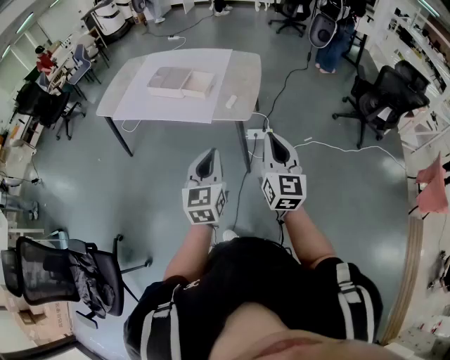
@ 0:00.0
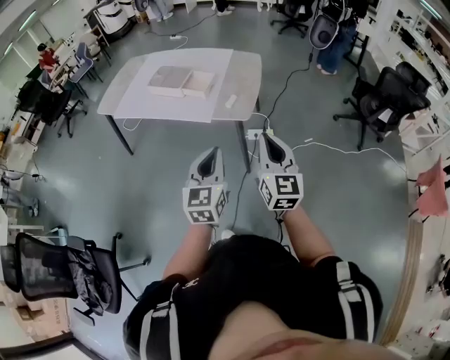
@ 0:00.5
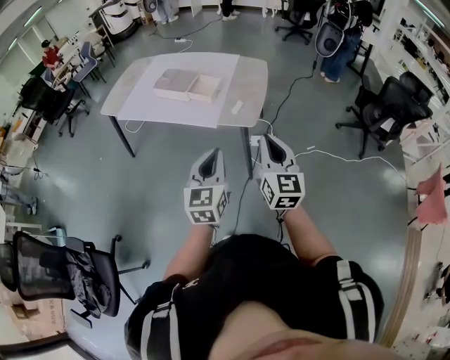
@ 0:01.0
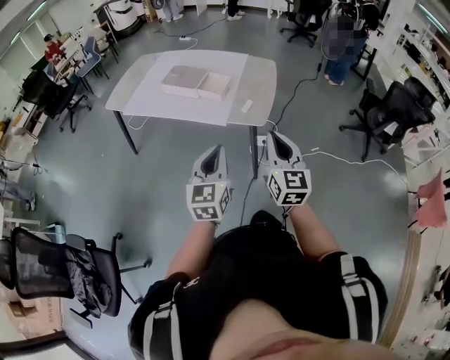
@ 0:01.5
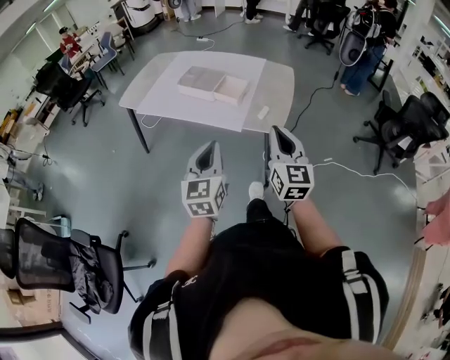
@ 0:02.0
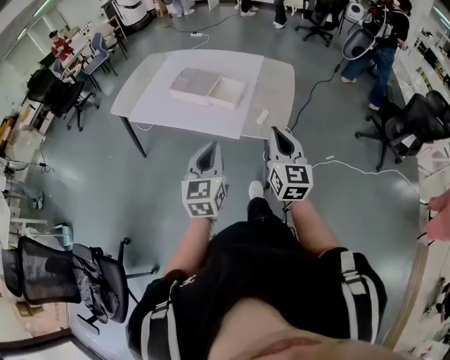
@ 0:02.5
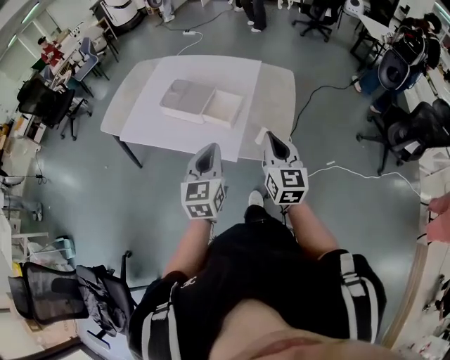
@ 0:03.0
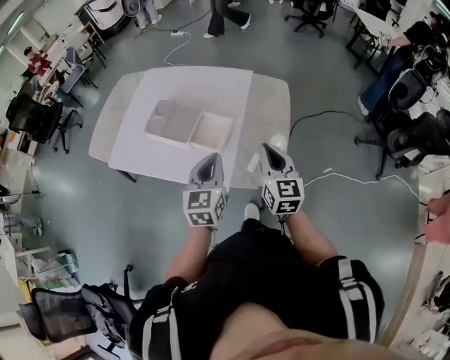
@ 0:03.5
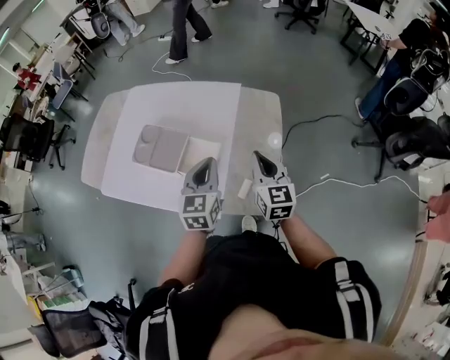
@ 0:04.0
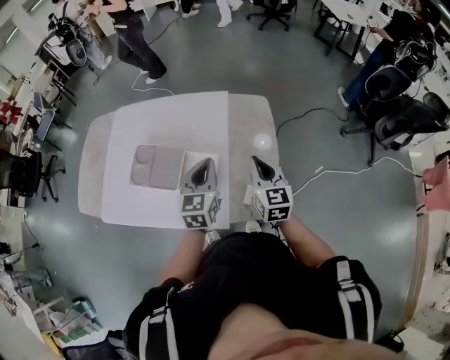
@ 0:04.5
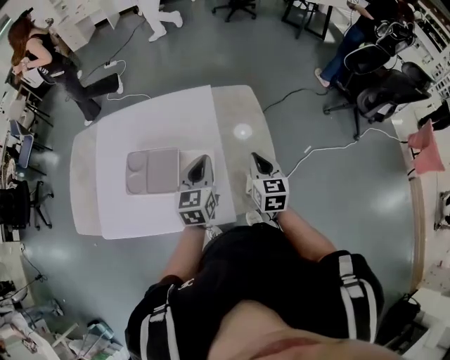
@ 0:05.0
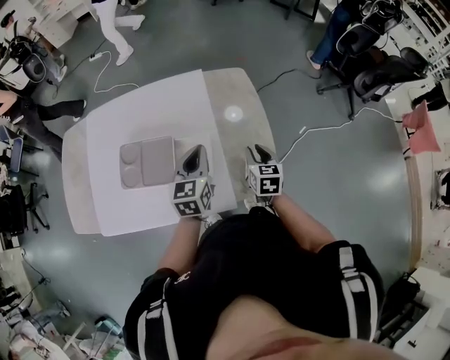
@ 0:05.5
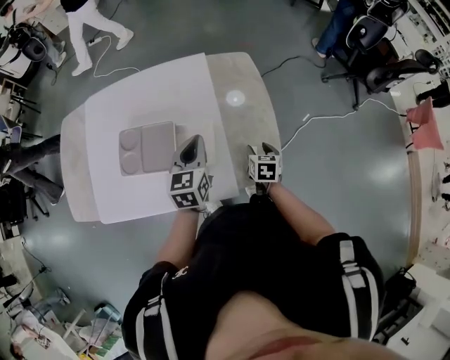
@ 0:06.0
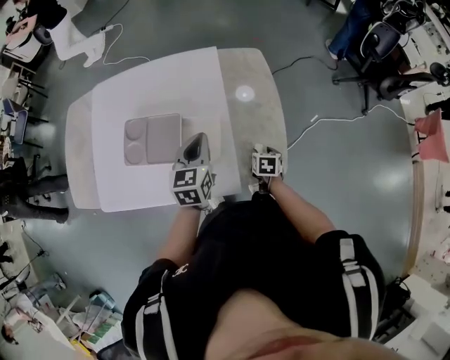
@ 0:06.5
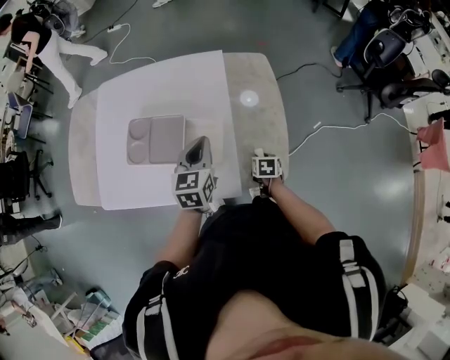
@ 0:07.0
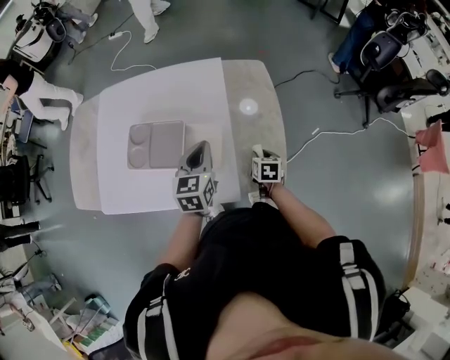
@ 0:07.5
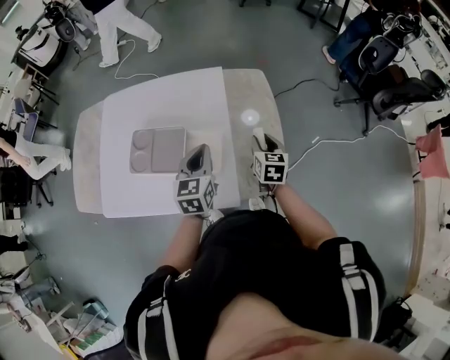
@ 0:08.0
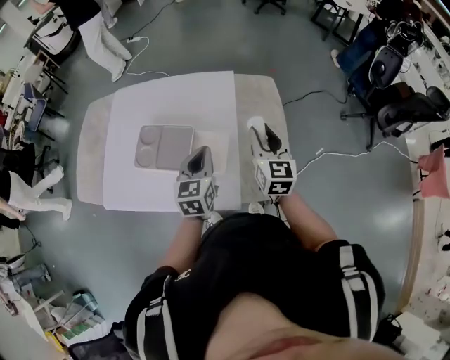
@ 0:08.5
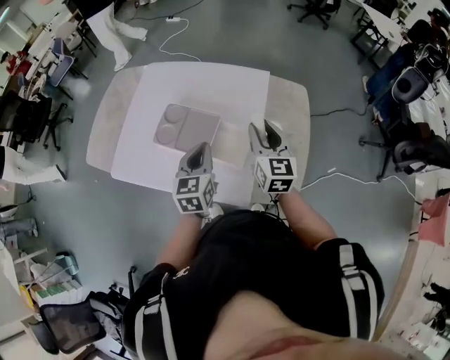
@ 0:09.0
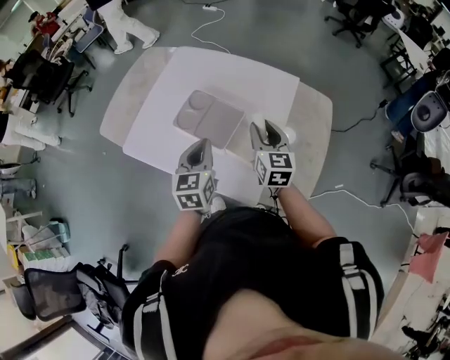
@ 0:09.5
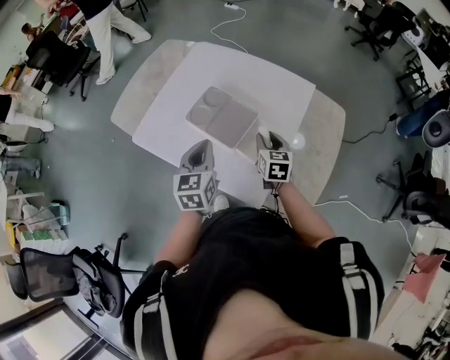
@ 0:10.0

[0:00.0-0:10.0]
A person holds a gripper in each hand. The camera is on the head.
0:00.0 to 0:02.0: Both grippers move to the left and forward, some 15 cm.
0:02.0 to 0:04.0: The pair of grippers is taken forward, about 50 cm.
0:04.0 to 0:06.0: The left gripper moves to the left and downward, about 10 cm, while the right gripper moves downward, roughly 25 cm, tips its fingers downward by some 40 degrees, and opens its fingers.
0:06.0 to 0:08.0: The right gripper shifts roughly 10 cm upward.
0:08.0 to 0:10.0: The left gripper ends up approximately 20 cm from where it was, and rotates roughly 30 degrees, while the right gripper reaches approximately 15 cm upward, then returns, and rotates about 30 degrees.

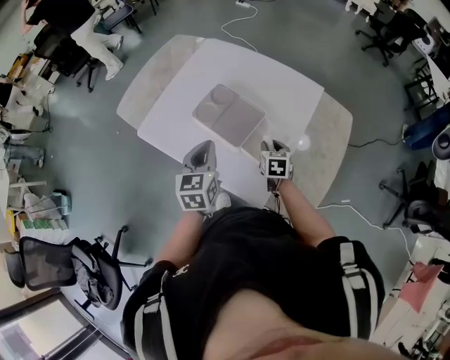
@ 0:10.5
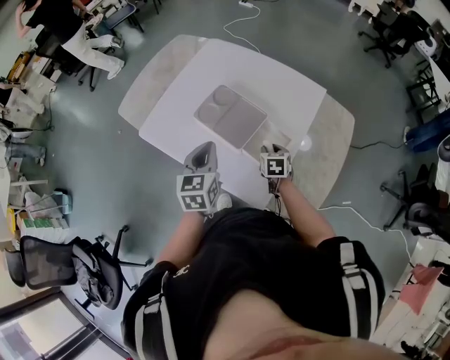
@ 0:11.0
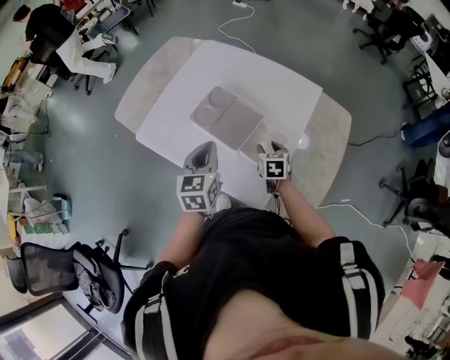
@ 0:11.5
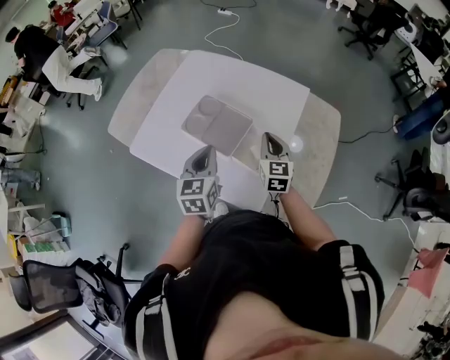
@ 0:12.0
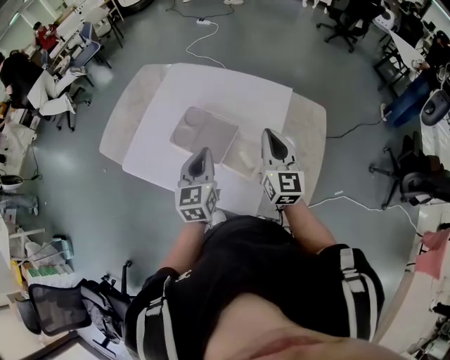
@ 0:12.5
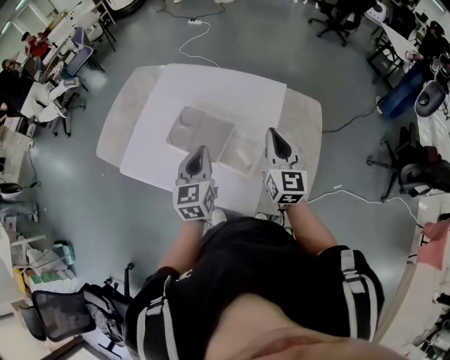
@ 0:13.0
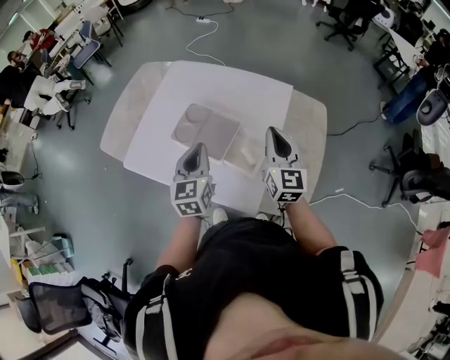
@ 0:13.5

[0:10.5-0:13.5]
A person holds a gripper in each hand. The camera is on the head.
0:10.5 to 0:12.0: The right gripper moves upward, approximately 10 cm, changes its angle by approximately 30 degrees, and closes its fingers.
0:12.0 to 0:13.5: The right gripper heads upward, covering approximately 10 cm.

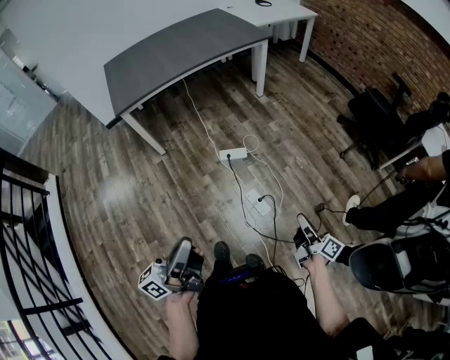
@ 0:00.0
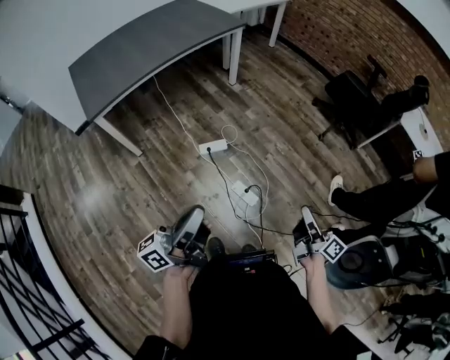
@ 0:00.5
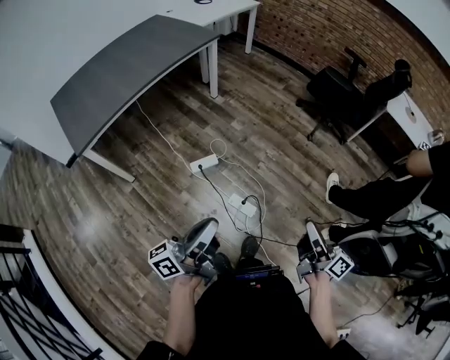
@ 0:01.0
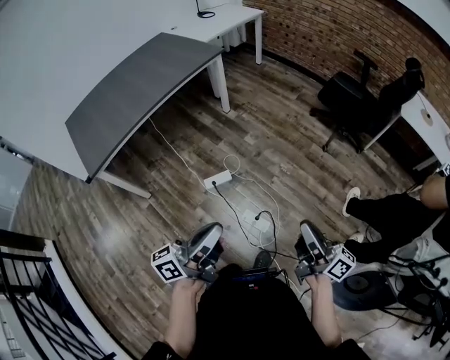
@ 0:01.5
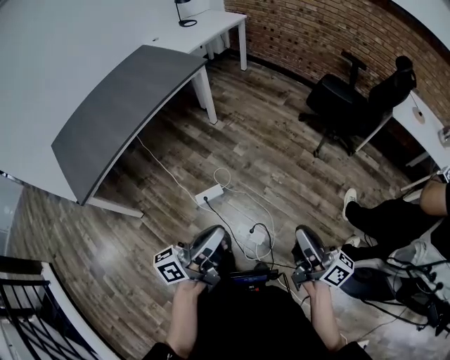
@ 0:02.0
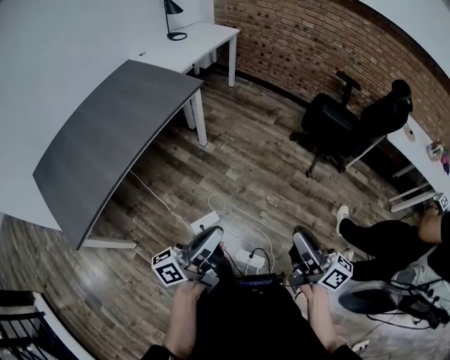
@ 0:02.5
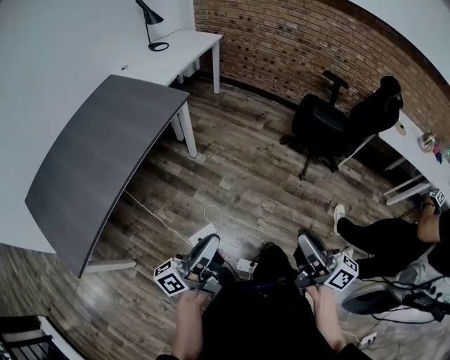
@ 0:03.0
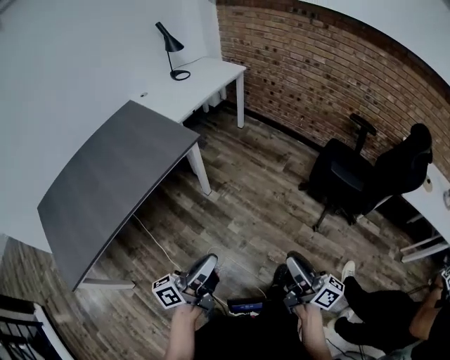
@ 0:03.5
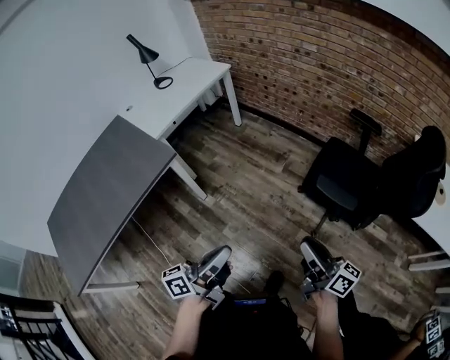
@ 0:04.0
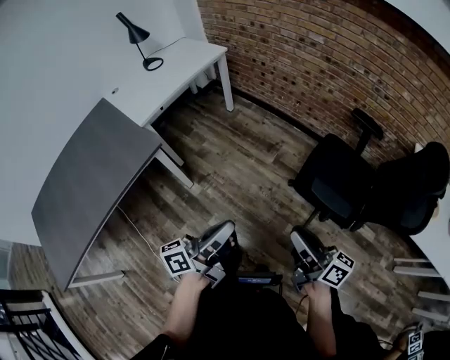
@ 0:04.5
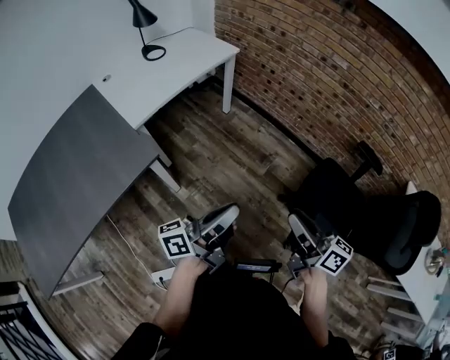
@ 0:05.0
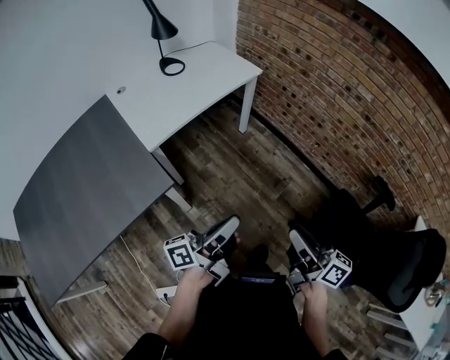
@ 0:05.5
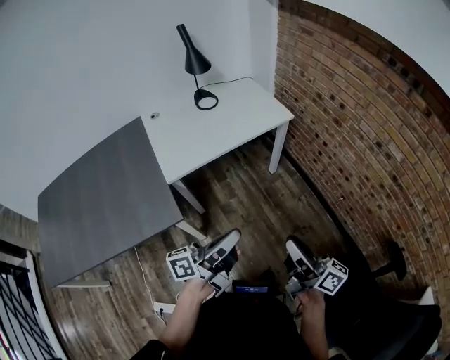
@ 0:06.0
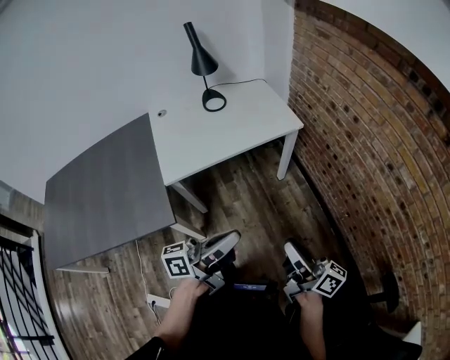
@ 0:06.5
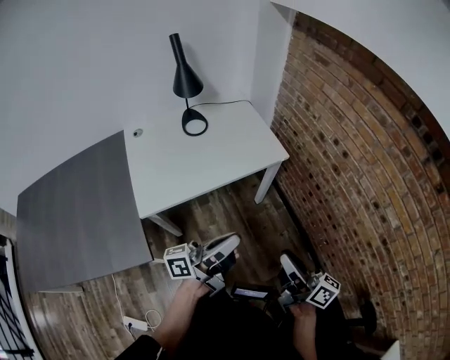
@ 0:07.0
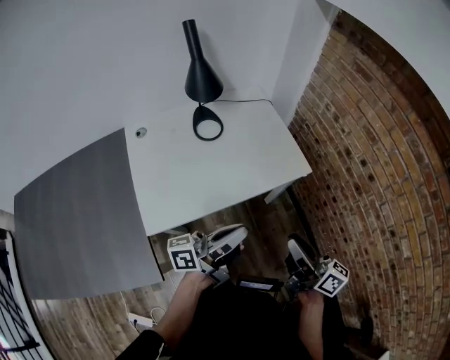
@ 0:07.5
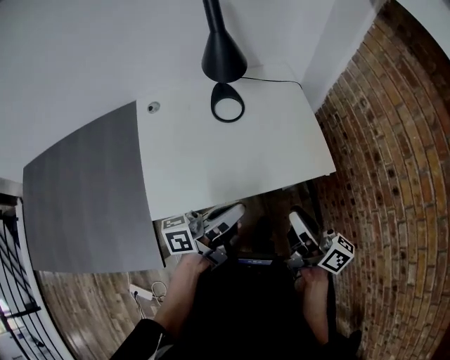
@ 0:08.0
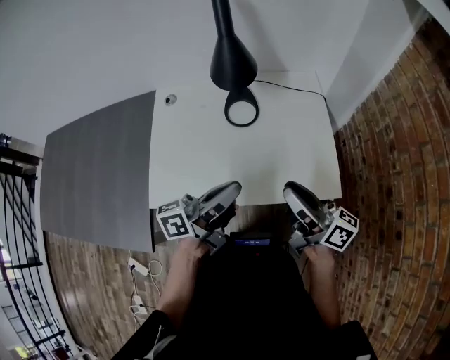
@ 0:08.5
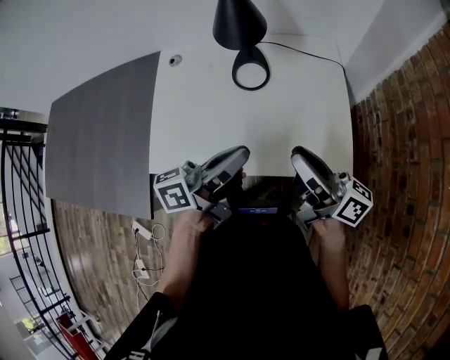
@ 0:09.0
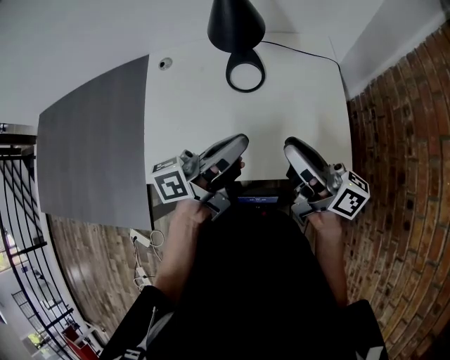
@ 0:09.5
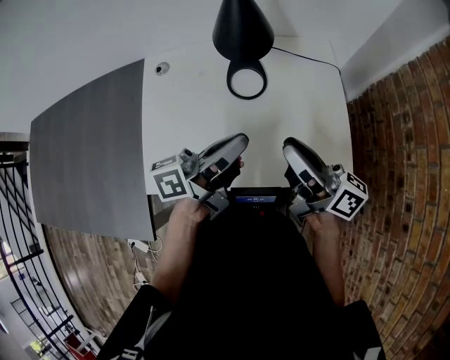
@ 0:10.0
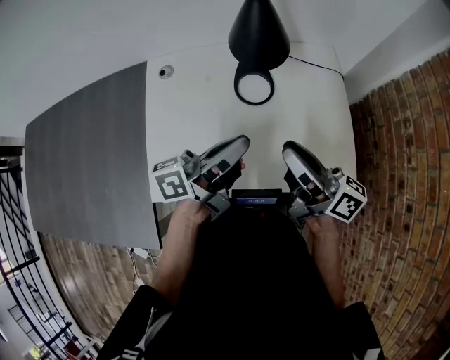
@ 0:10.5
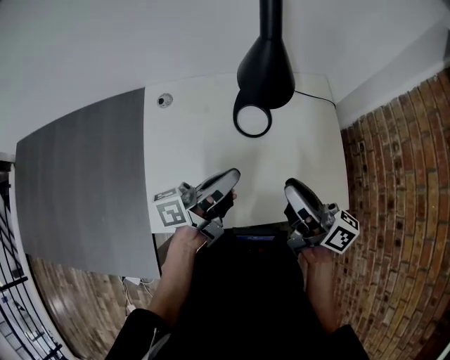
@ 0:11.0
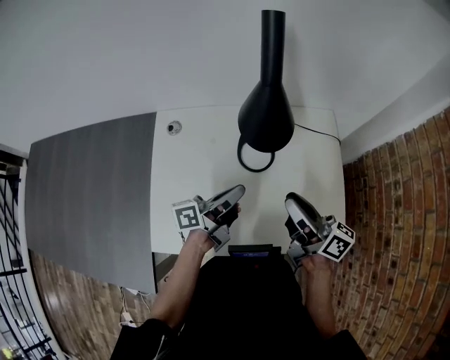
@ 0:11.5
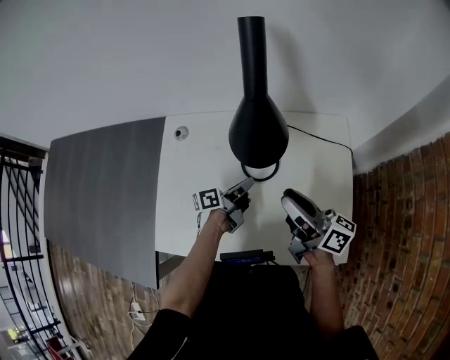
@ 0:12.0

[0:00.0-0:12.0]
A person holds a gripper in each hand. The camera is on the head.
0:00.0 to 0:02.0: The right gripper goes about 15 cm upward, and swivels about 20 degrees.
0:02.0 to 0:04.0: The right gripper moves approximately 50 cm.
0:04.0 to 0:06.0: The right gripper moves some 50 cm, and turns by roughly 30 degrees.
0:06.0 to 0:08.0: The right gripper moves roughly 40 cm.
0:08.0 to 0:10.0: The right gripper shifts by roughly 20 cm.
0:10.0 to 0:12.0: The right gripper changes place by roughly 10 cm.

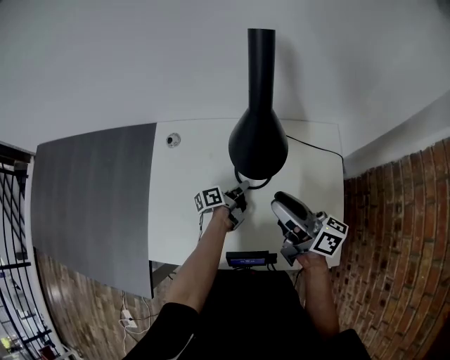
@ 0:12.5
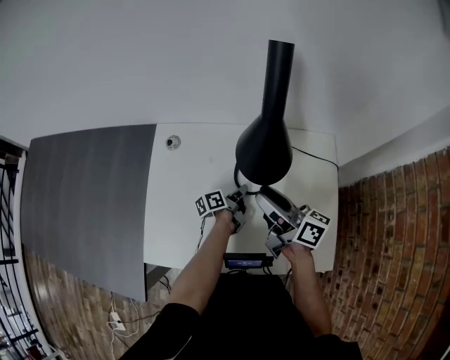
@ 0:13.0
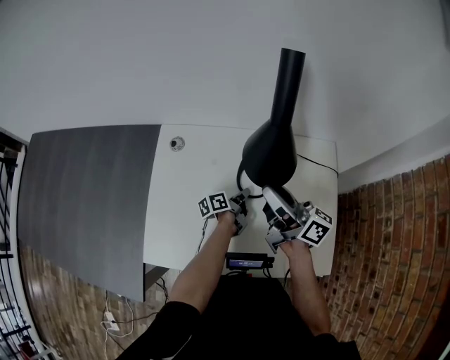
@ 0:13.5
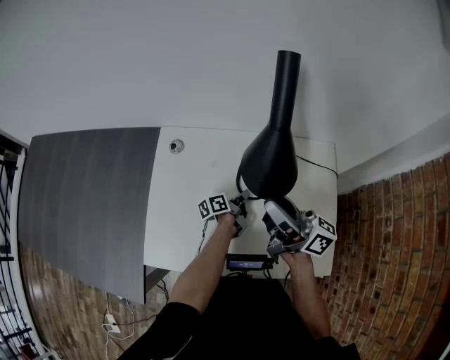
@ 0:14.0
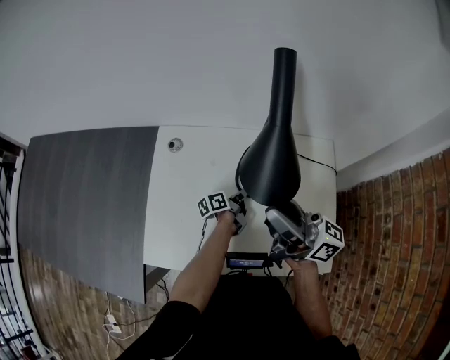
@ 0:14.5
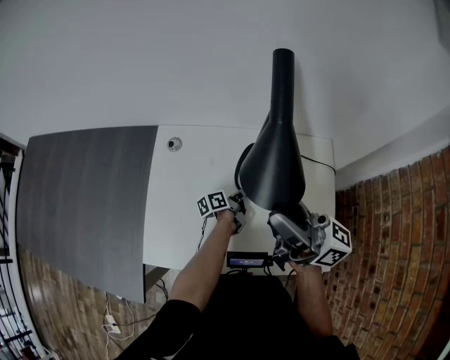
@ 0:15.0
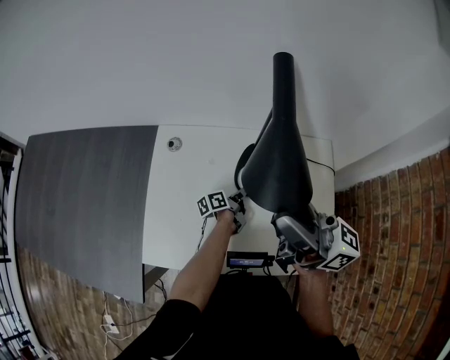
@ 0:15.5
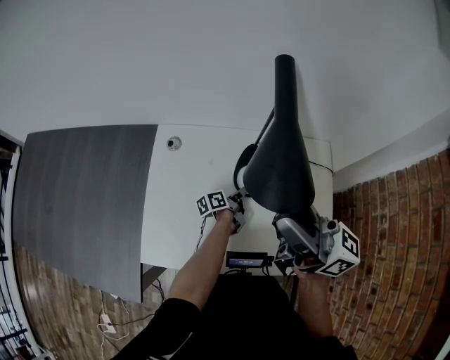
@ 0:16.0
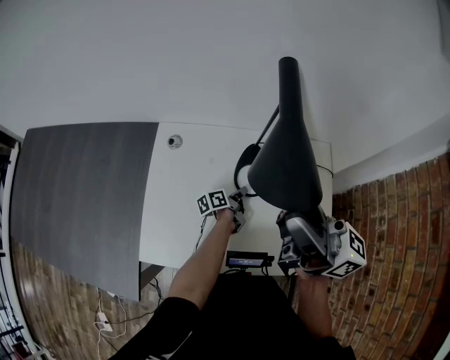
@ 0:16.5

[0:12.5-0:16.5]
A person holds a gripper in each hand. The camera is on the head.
0:12.5 to 0:14.5: The right gripper goes roughly 10 cm upward.
0:14.5 to 0:16.5: The right gripper heads upward, covering roughly 10 cm.
